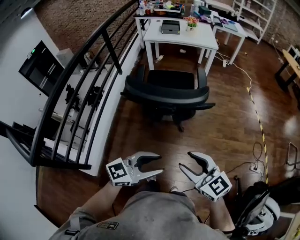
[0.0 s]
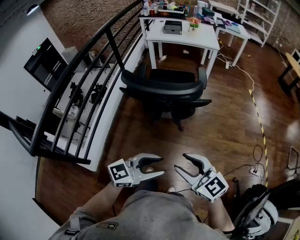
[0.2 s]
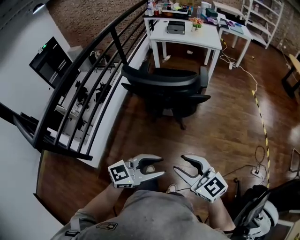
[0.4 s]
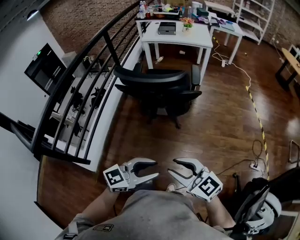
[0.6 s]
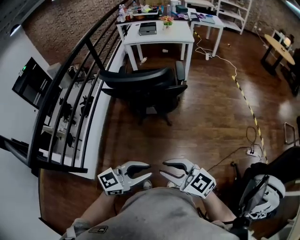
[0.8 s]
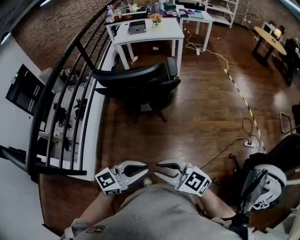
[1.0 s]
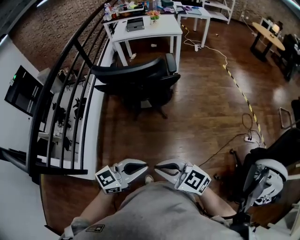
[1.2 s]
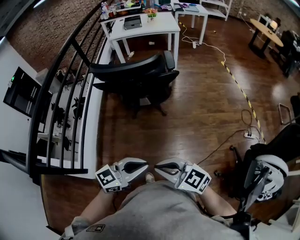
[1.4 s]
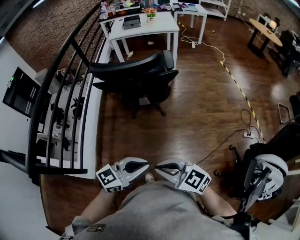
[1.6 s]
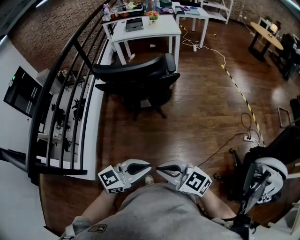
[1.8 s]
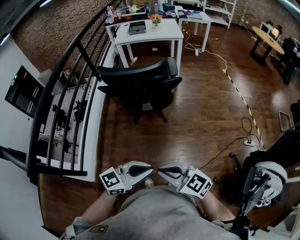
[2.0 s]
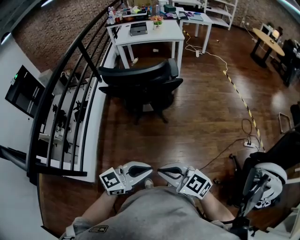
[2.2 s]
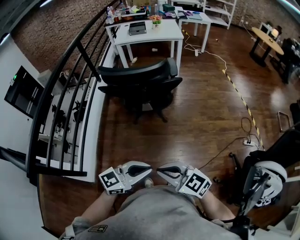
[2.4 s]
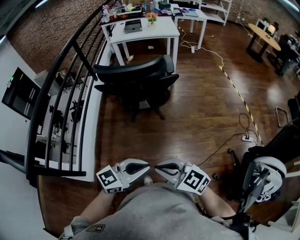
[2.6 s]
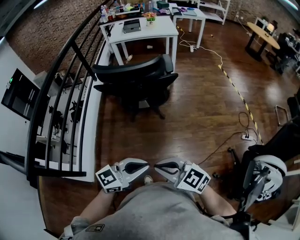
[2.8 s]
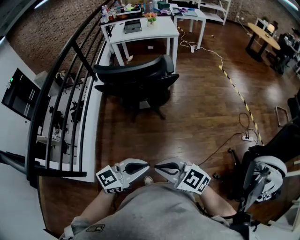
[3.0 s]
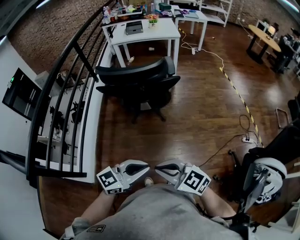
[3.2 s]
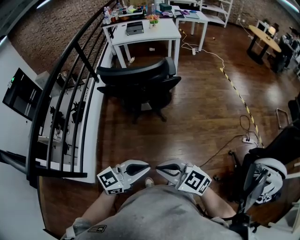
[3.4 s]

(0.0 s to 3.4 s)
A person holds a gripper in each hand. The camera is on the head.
0.0 s - 1.6 s: The left gripper ends up roughly 15 cm from where it was, and closes. Meanwhile the right gripper moves some 20 cm, and closes its fingers.
1.6 s - 3.4 s: The grippers stay close to where they were, moving slightly.

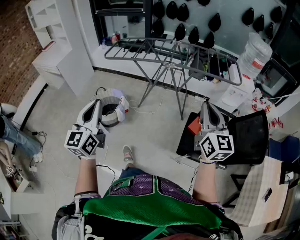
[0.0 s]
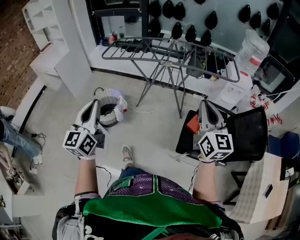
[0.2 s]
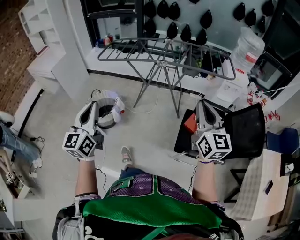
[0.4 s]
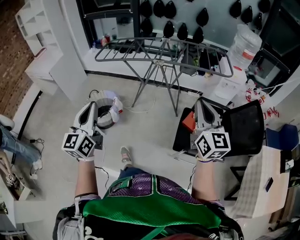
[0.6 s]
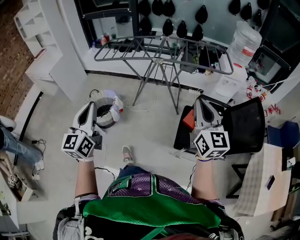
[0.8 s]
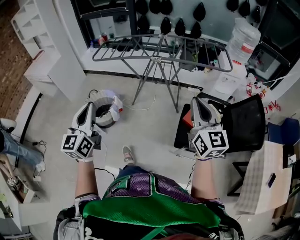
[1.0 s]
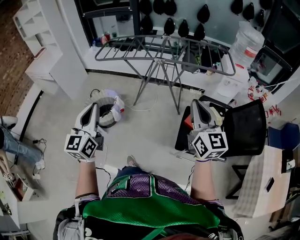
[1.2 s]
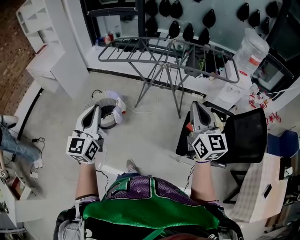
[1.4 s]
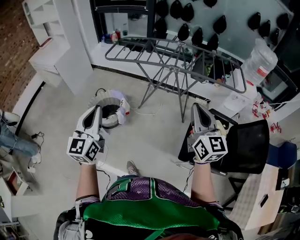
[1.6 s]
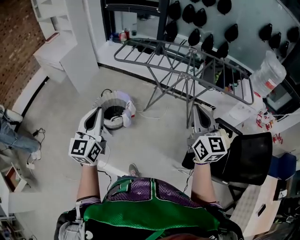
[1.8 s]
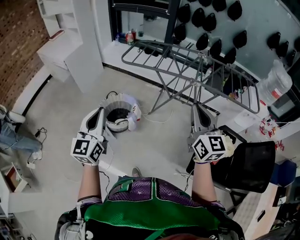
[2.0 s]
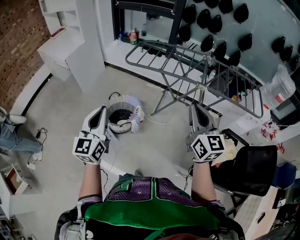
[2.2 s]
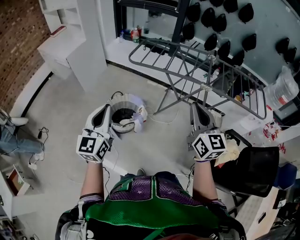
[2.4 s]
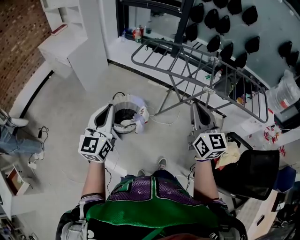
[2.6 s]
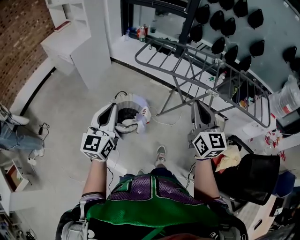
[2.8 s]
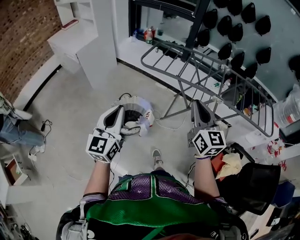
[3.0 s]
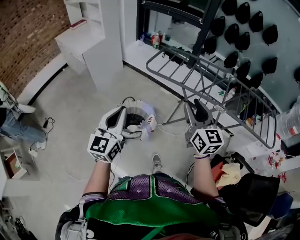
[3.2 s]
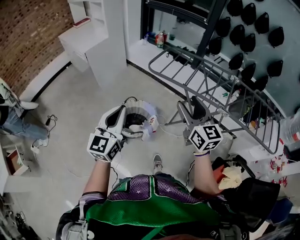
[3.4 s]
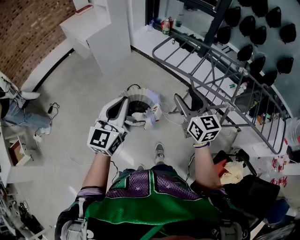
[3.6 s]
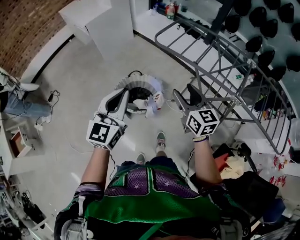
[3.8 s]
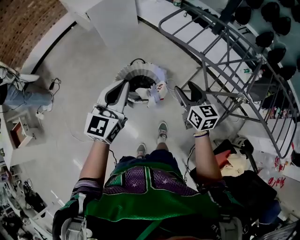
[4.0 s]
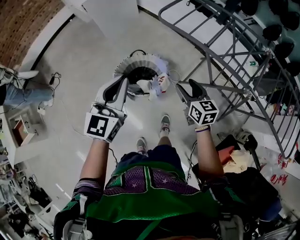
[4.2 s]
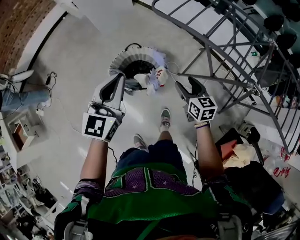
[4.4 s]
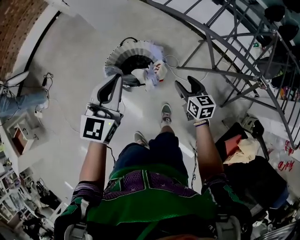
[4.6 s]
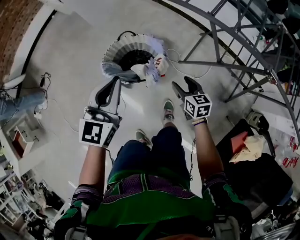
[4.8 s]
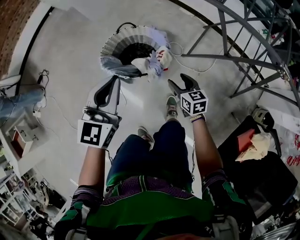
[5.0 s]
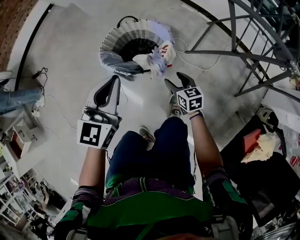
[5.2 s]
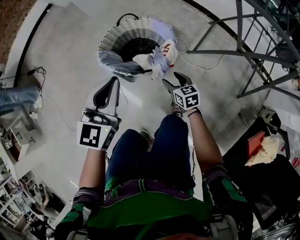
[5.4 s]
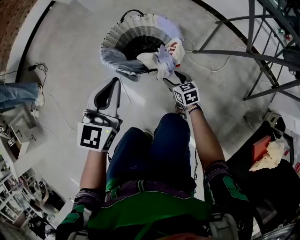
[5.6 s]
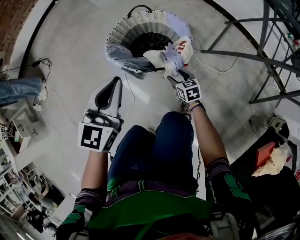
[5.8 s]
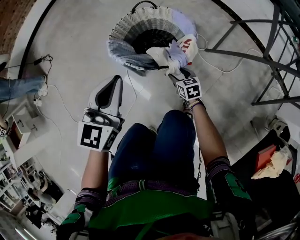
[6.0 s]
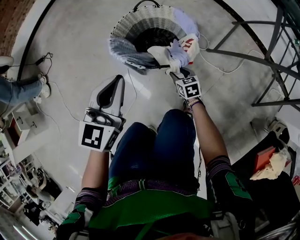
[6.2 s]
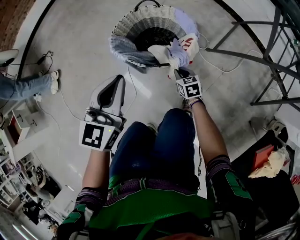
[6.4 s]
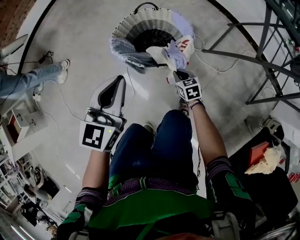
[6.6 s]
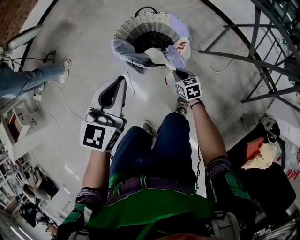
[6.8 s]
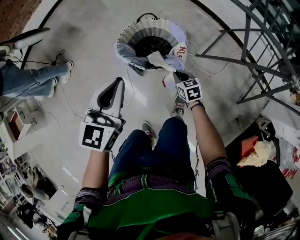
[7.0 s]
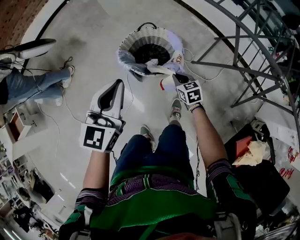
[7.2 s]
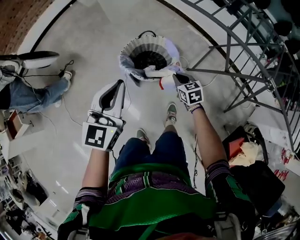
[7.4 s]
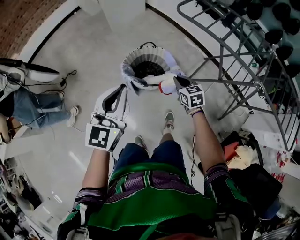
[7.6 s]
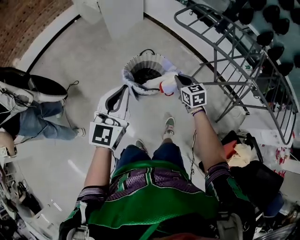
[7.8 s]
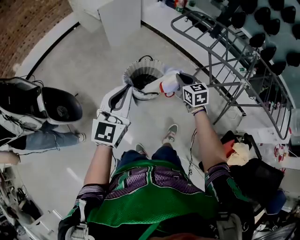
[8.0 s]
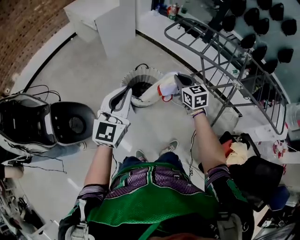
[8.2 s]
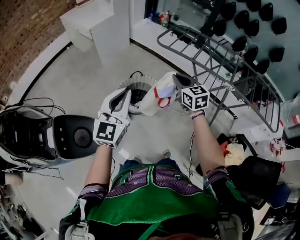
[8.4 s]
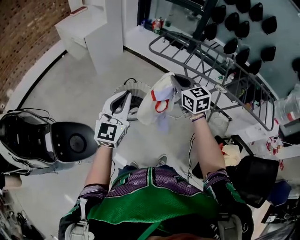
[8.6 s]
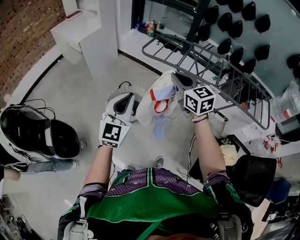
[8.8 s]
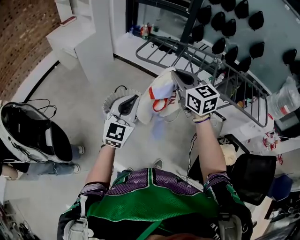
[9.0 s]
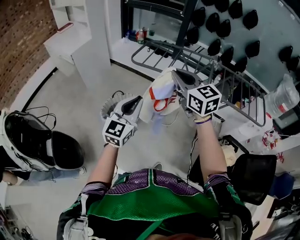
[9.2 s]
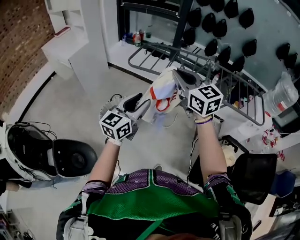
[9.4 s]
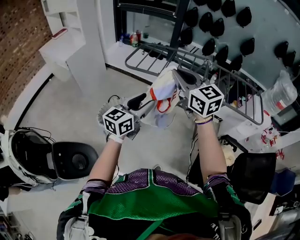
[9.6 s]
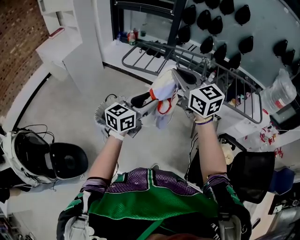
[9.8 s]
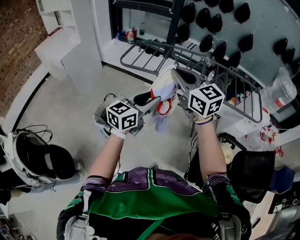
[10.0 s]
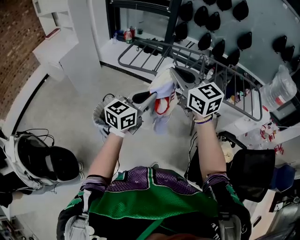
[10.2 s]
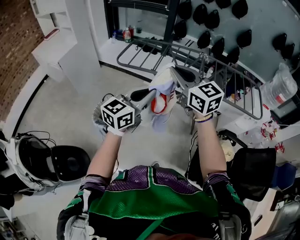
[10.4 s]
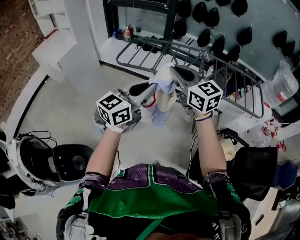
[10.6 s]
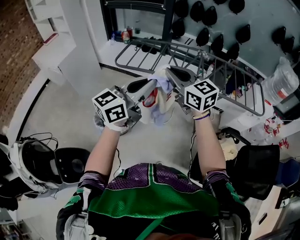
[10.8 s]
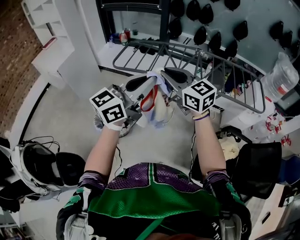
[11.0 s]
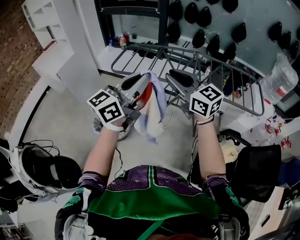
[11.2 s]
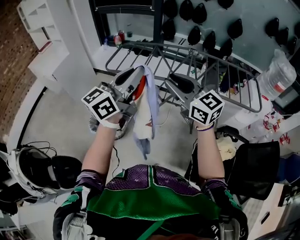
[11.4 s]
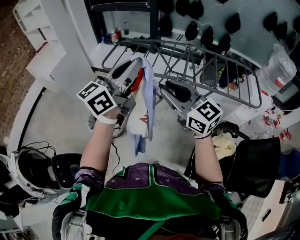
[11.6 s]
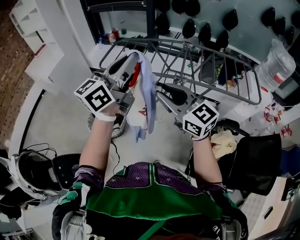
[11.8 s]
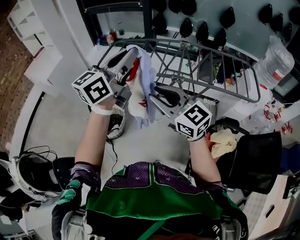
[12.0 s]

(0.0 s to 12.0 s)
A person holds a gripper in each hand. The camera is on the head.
0.0 s - 1.6 s: The right gripper is displaced to the left and forward by approximately 10 cm. The left gripper shifts roughly 5 cm forward.
1.6 s - 3.0 s: Both grippers move forward and to the left, roughly 30 cm.
3.0 s - 4.4 s: The left gripper moves forward, downward and to the right, approximately 20 cm. Meanwhile the right gripper goes some 40 cm downward and forward, changes its angle by approximately 40 degrees, and opens up.
4.4 s - 6.0 s: Both grippers move downward, approximately 40 cm. The right gripper changes its angle by approximately 20 degrees.
6.0 s - 7.6 s: Both grippers move upward, approximately 40 cm. The right gripper closes its fingers.
7.6 s - 9.0 s: The left gripper travels upward, to the right and backward by about 20 cm, and turns by some 20 degrees. The right gripper goes roughly 40 cm upward, and swivels approximately 30 degrees.
9.0 s - 10.4 s: The left gripper goes some 15 cm to the right and forward, swivels roughly 40 degrees, and opens and closes again, while the right gripper heads to the right, covering some 10 cm.
10.4 s - 12.0 s: The right gripper is displaced to the right, backward and downward by about 15 cm, while the left gripper is displaced upward, to the right and forward by roughly 20 cm.

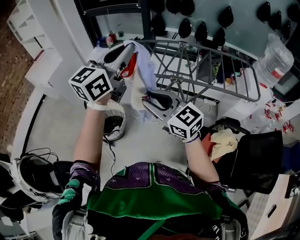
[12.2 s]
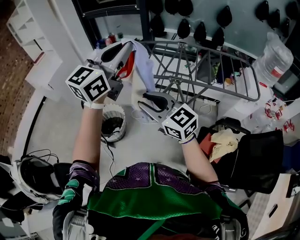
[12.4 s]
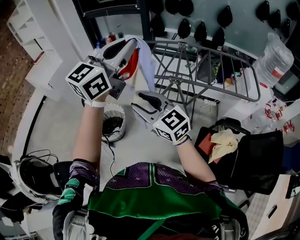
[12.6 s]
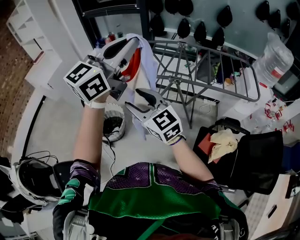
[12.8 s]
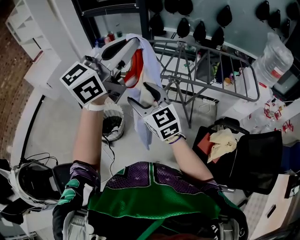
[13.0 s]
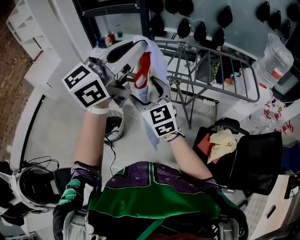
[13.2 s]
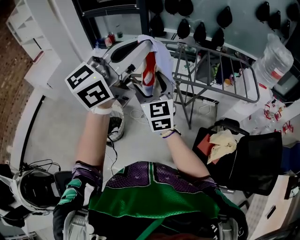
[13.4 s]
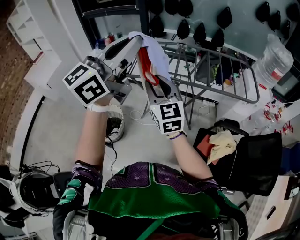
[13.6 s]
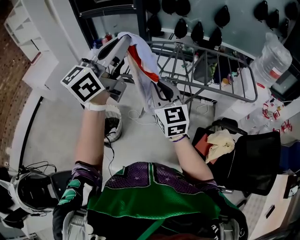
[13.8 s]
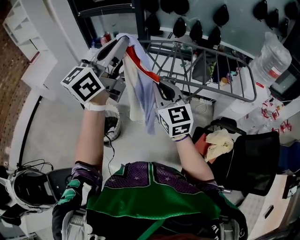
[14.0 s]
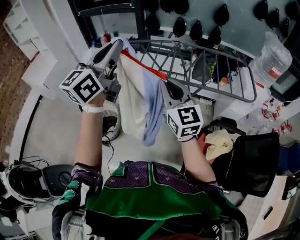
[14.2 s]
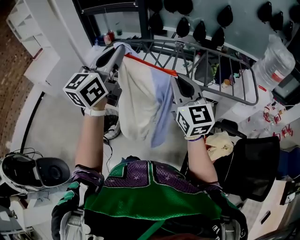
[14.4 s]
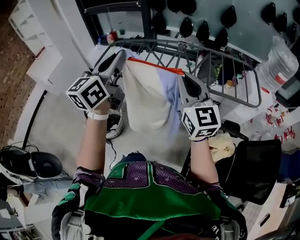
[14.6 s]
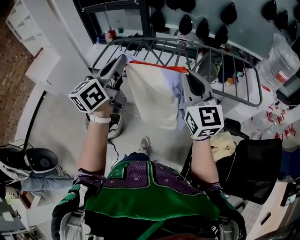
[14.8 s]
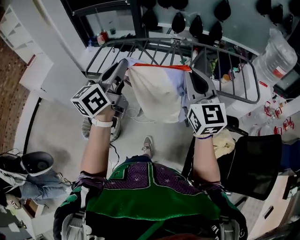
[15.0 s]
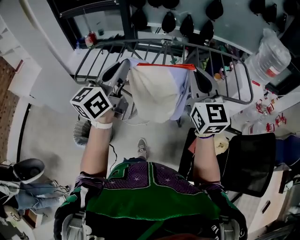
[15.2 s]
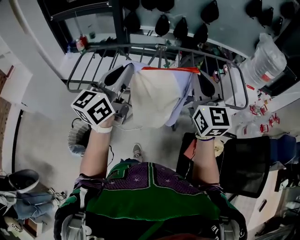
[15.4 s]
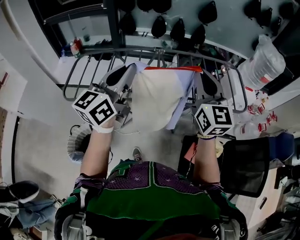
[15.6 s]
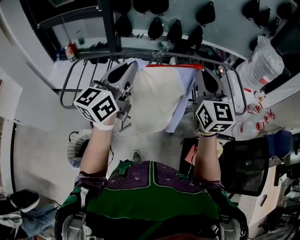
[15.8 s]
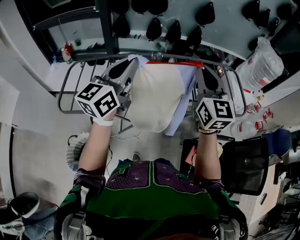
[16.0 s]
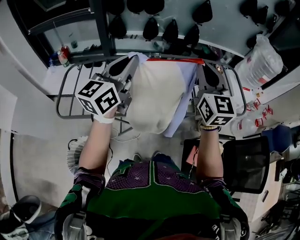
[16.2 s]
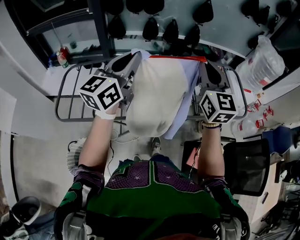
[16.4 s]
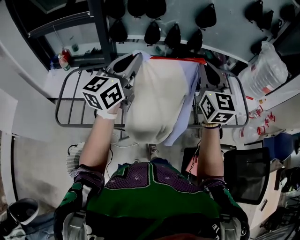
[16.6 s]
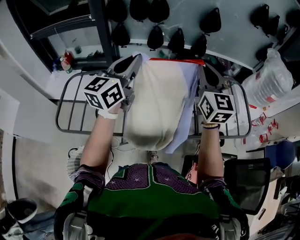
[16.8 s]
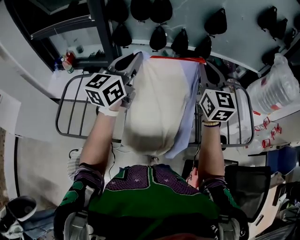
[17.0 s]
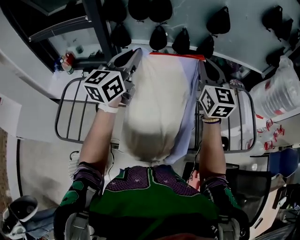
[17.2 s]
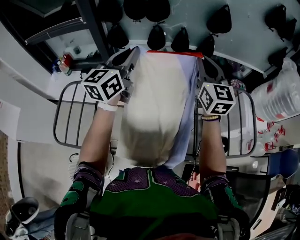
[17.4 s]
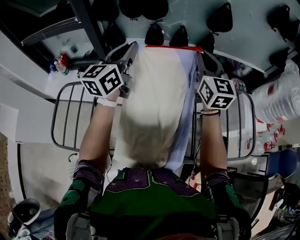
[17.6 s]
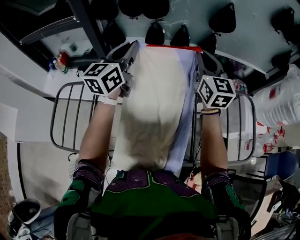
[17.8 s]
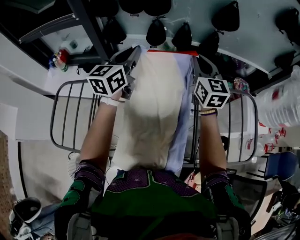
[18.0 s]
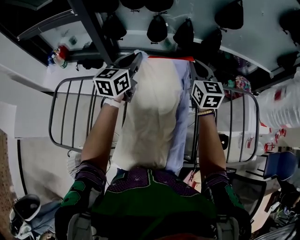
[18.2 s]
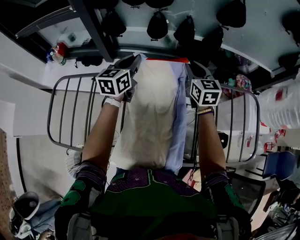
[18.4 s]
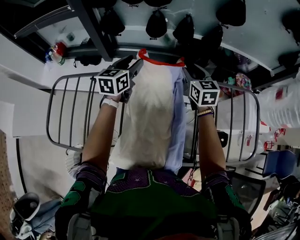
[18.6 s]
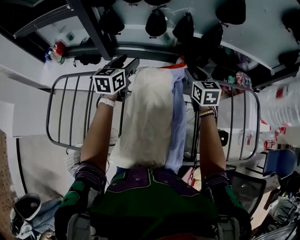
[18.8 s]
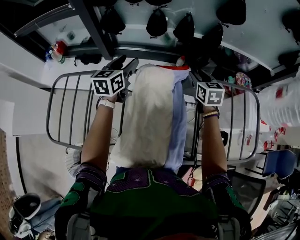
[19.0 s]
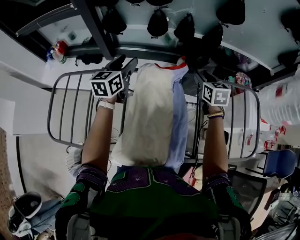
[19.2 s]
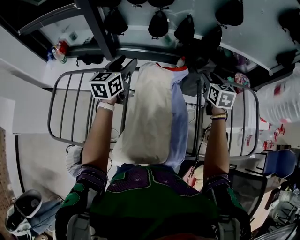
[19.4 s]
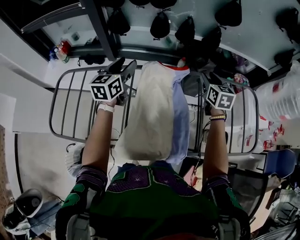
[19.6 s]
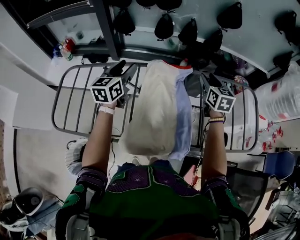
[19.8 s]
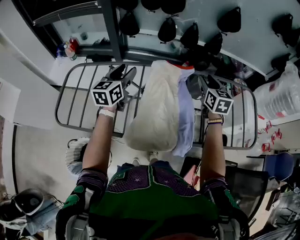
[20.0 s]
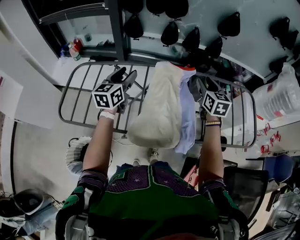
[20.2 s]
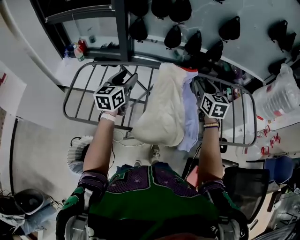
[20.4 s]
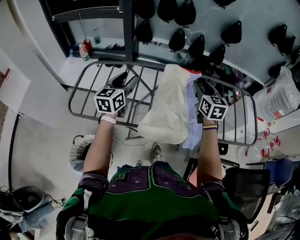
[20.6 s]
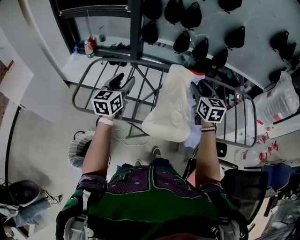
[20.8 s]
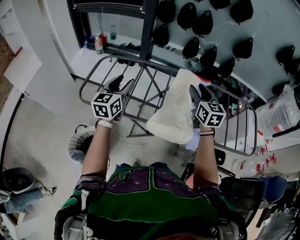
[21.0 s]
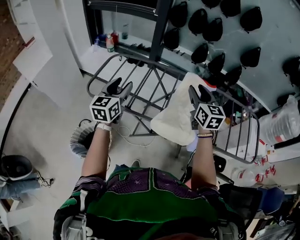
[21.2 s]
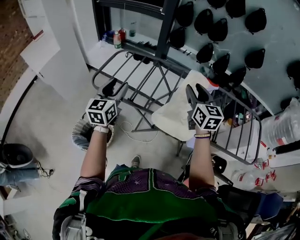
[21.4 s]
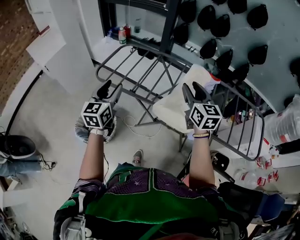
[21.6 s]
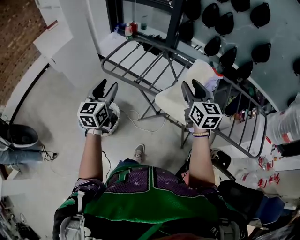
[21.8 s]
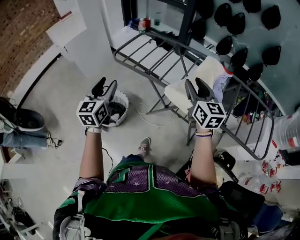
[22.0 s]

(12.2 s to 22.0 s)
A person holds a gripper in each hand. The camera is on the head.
12.2 s - 13.6 s: The right gripper goes approximately 10 cm forward, rotates about 30 degrees, and opens, then closes again; the left gripper is displaced upward by roughly 5 cm.
13.6 s - 15.0 s: The right gripper goes about 15 cm to the right, and closes its fingers; the left gripper heads downward and forward, covering roughly 15 cm, and changes its angle by approximately 30 degrees.
15.0 s - 16.4 s: Both grippers move forward, about 30 cm. The right gripper swivels approximately 20 degrees.
16.4 s - 17.8 s: The grippers both shift forward by approximately 35 cm.
17.8 s - 19.2 s: Both grippers move downward, some 20 cm. The left gripper opens, while the right gripper angles its fingers downward, by approximately 30 degrees, and opens.
19.2 s - 20.6 s: The left gripper goes some 30 cm backward and to the left. Meanwhile the right gripper shifts some 30 cm backward, to the left and upward.
20.6 s - 22.0 s: The right gripper ends up about 30 cm from where it was, and swivels approximately 30 degrees. The left gripper changes place by roughly 40 cm, and changes its angle by approximately 40 degrees.
